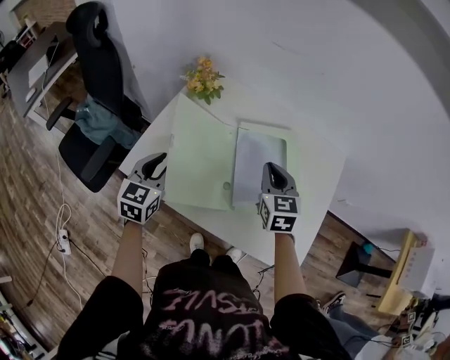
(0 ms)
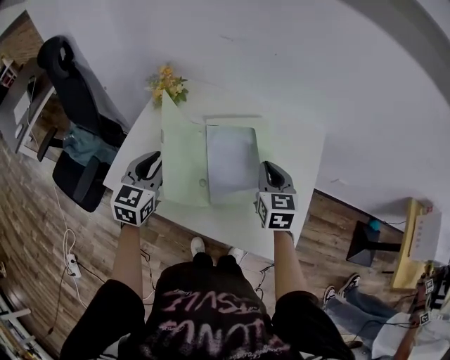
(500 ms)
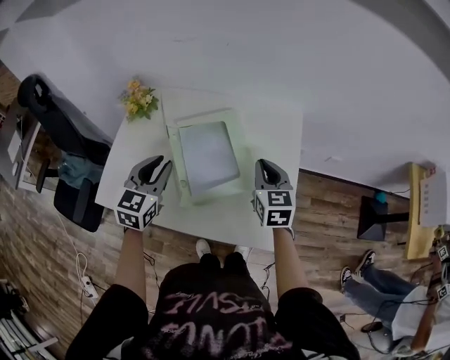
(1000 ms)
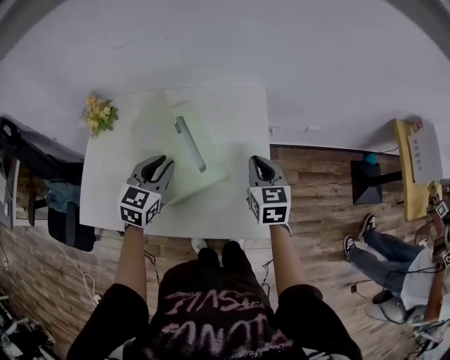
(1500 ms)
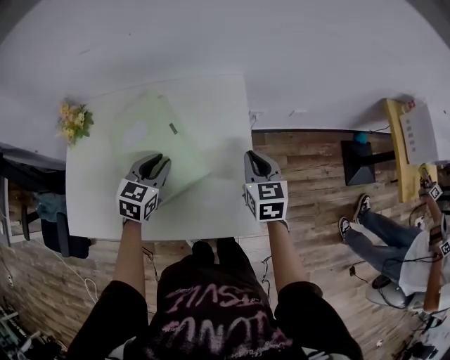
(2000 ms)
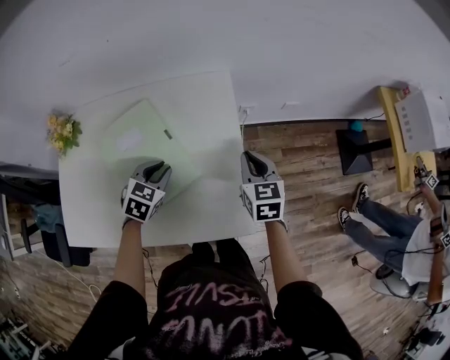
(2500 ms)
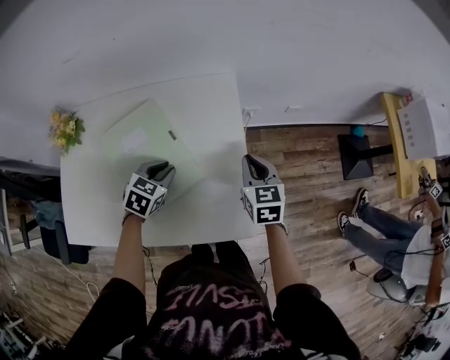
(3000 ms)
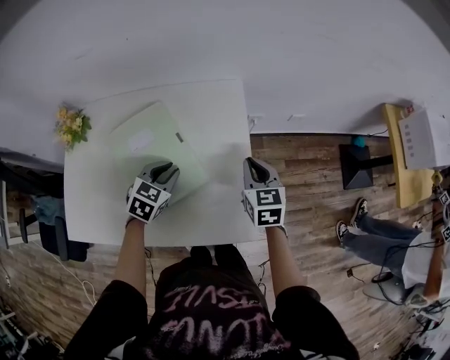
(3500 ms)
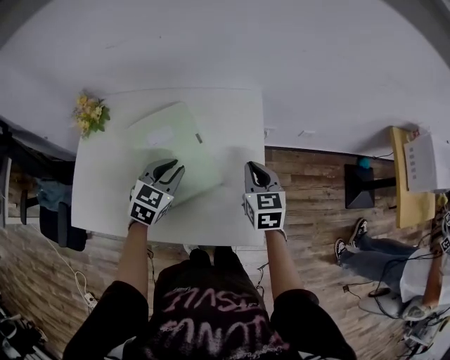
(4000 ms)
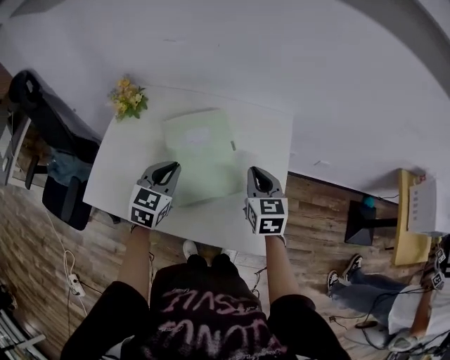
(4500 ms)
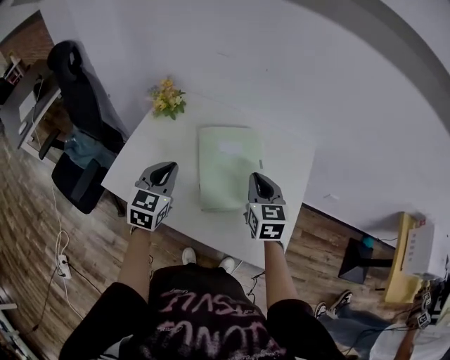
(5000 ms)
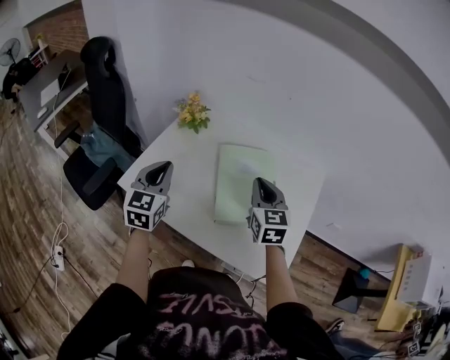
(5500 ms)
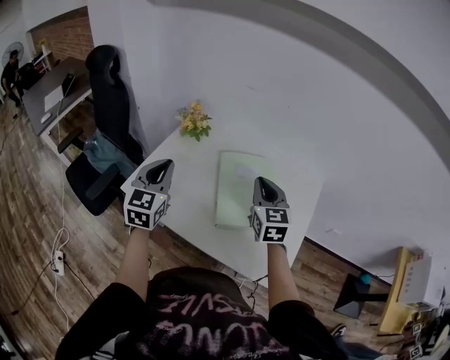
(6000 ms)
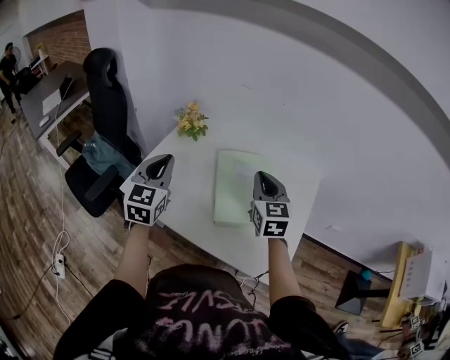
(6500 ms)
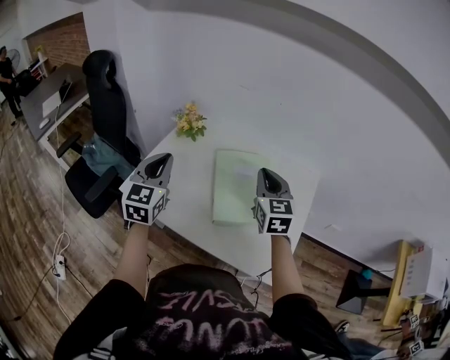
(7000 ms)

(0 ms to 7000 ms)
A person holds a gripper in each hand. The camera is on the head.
0 ms - 2000 ms: The left gripper shifts by approximately 40 cm, and turns by approximately 30 degrees. Meanwhile the right gripper shifts by approximately 35 cm, and swivels about 30 degrees.
3500 ms - 5000 ms: The right gripper shifts by some 25 cm, and changes its angle by roughly 20 degrees; the left gripper changes place by some 30 cm, and swivels some 40 degrees.
5000 ms - 7000 ms: The right gripper moves upward, approximately 10 cm; the left gripper heads upward and to the left, covering roughly 15 cm.

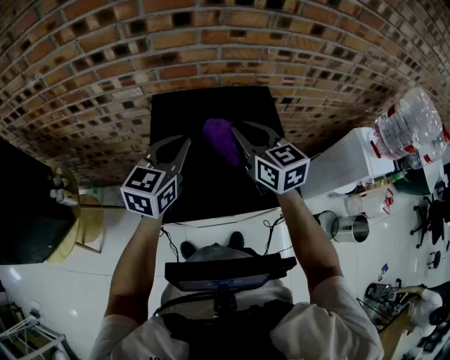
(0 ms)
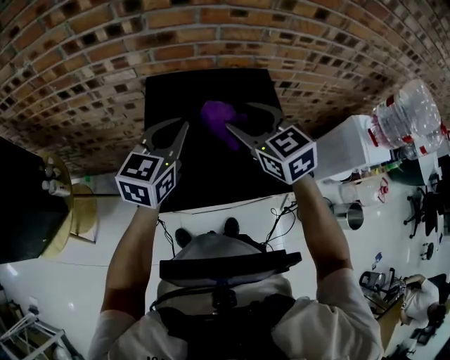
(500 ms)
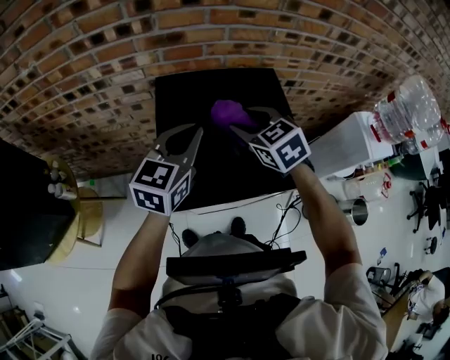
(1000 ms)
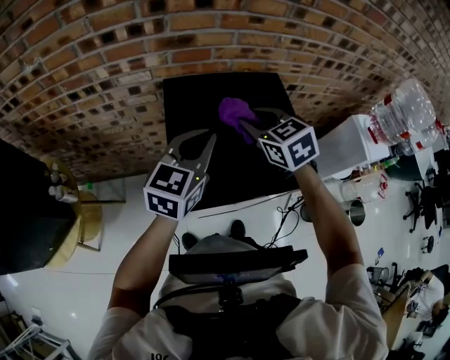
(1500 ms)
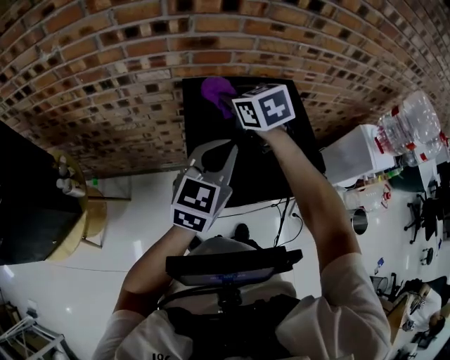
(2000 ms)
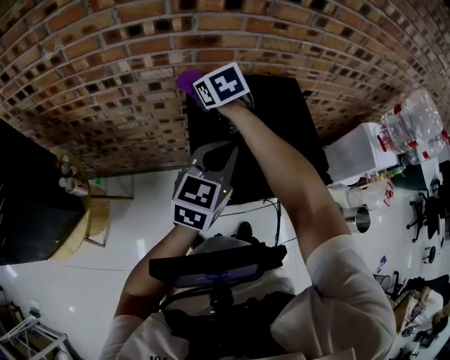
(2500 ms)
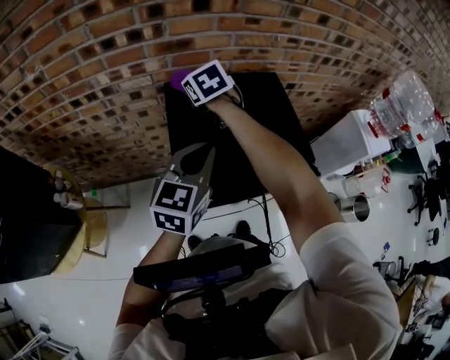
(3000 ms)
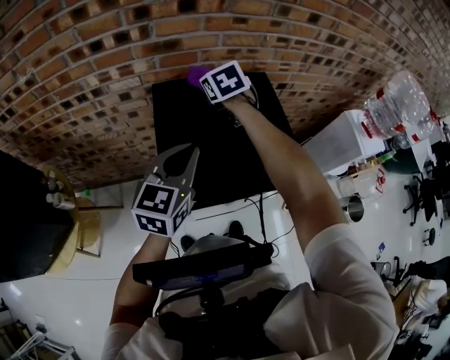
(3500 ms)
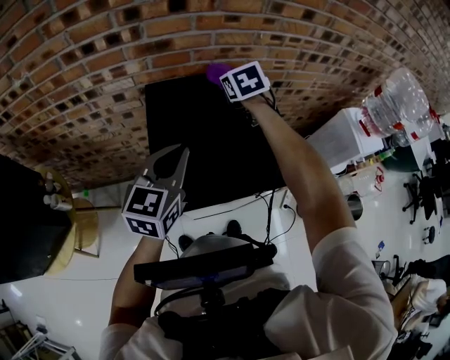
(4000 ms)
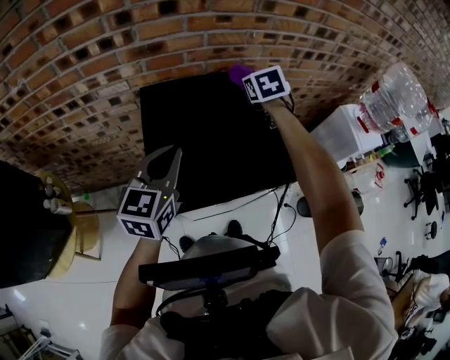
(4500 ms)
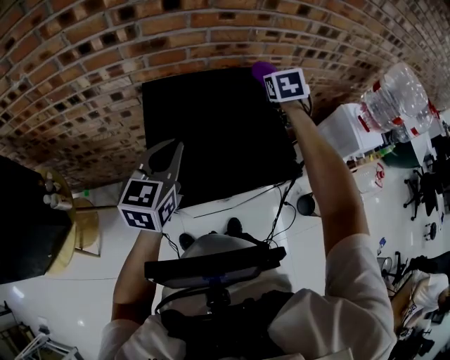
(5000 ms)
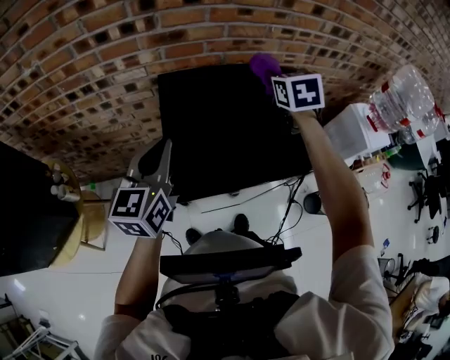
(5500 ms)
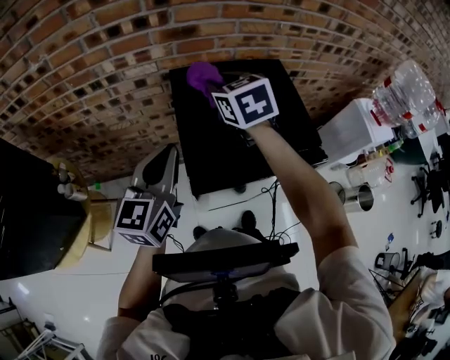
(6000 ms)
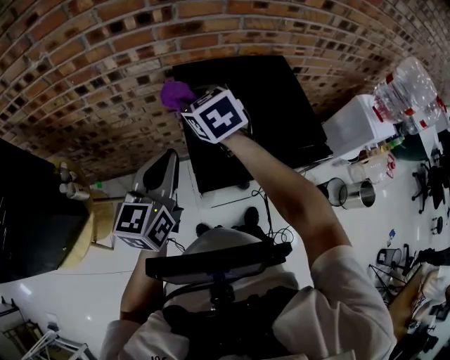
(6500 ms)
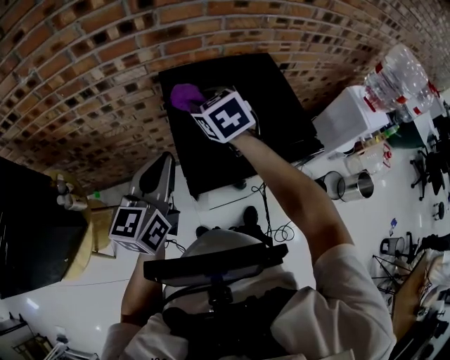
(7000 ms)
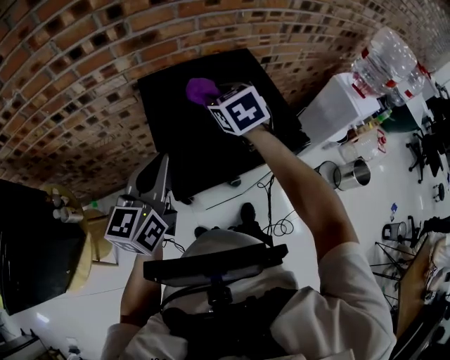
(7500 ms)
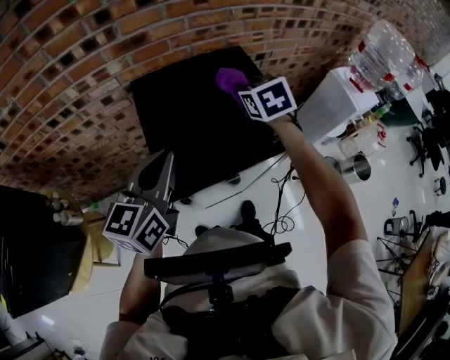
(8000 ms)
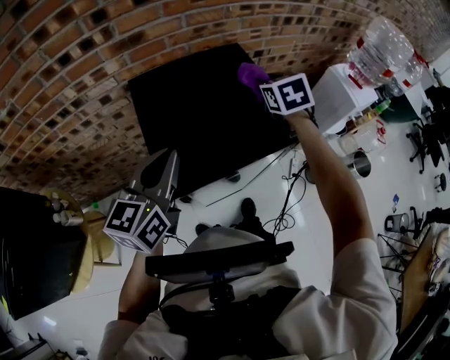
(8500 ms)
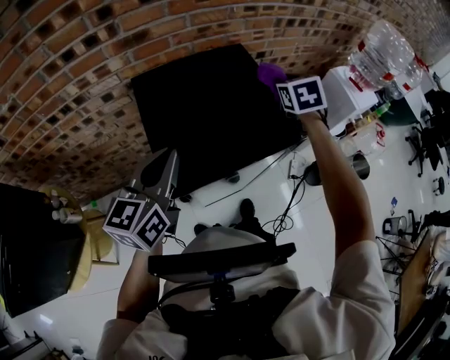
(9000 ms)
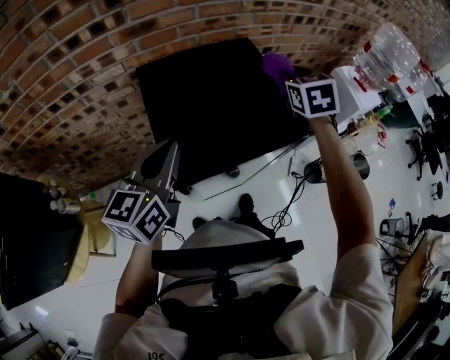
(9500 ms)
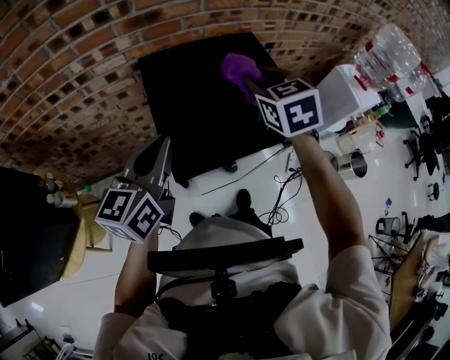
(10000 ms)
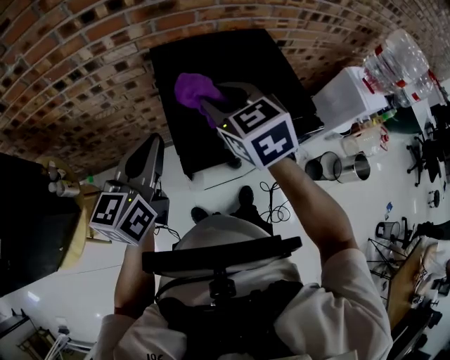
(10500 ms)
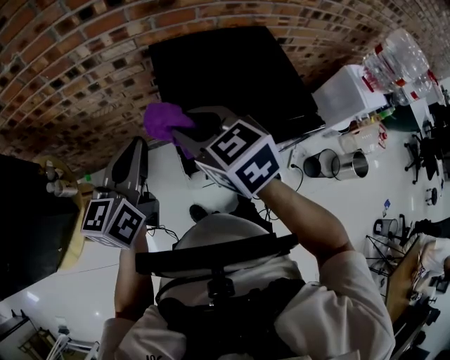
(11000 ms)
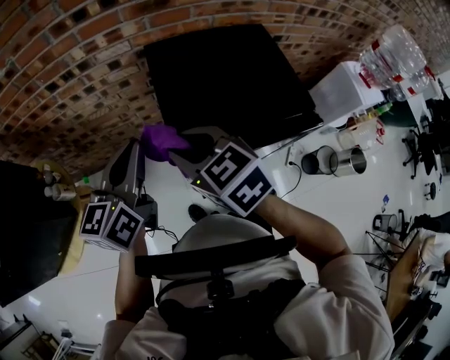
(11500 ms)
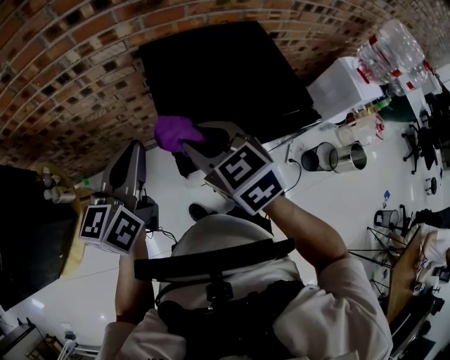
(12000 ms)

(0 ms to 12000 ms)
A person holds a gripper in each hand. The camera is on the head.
0 ms - 2000 ms: The right gripper shifts roughly 15 cm to the left and forward, rotates roughly 20 degrees, and opens, then closes once more.
2000 ms - 4000 ms: The right gripper travels to the right and forward by some 15 cm.
4000 ms - 6000 ms: The right gripper is displaced backward and to the left by some 15 cm. Meanwhile the left gripper goes roughly 10 cm to the left and backward.
6000 ms - 8000 ms: The right gripper is displaced to the right by about 20 cm. The left gripper travels to the right by roughly 5 cm.
8000 ms - 10000 ms: The right gripper moves backward and upward, approximately 10 cm, and travels to the right and back again, about 10 cm each way.
10000 ms - 12000 ms: The left gripper travels to the left by some 10 cm; the right gripper shifts about 20 cm to the left and backward, and rotates about 20 degrees.

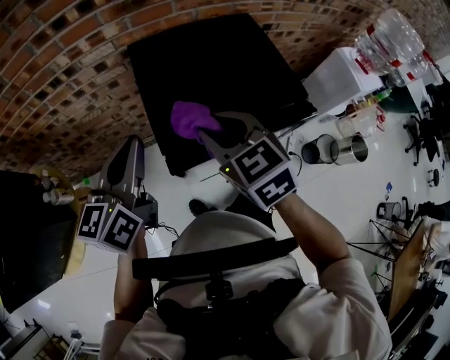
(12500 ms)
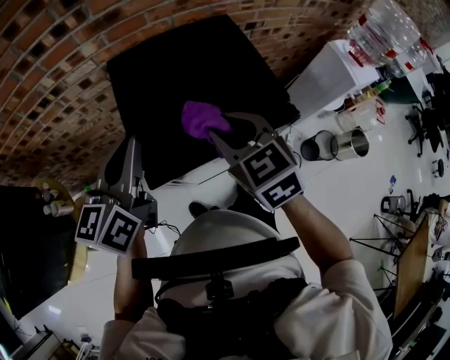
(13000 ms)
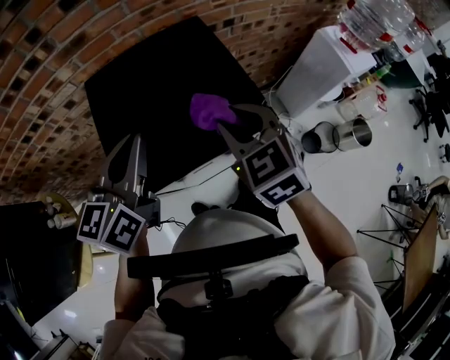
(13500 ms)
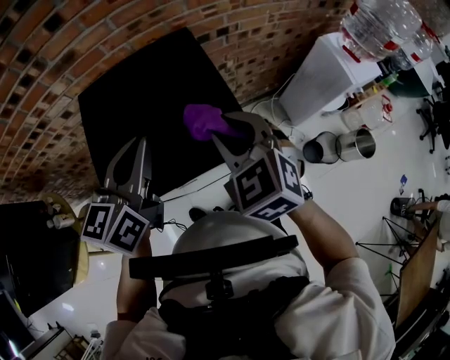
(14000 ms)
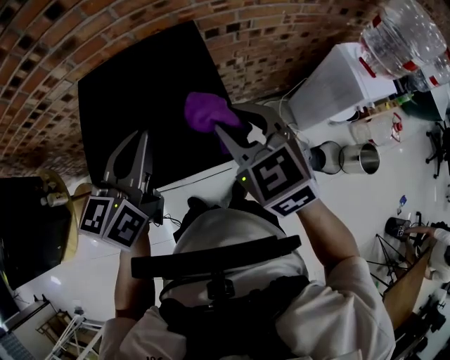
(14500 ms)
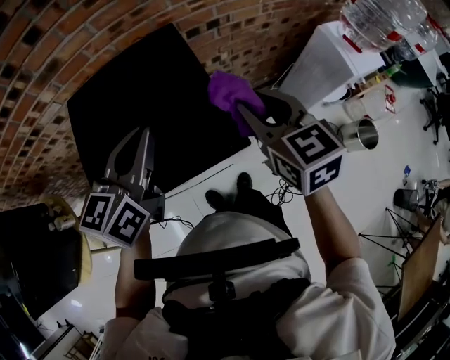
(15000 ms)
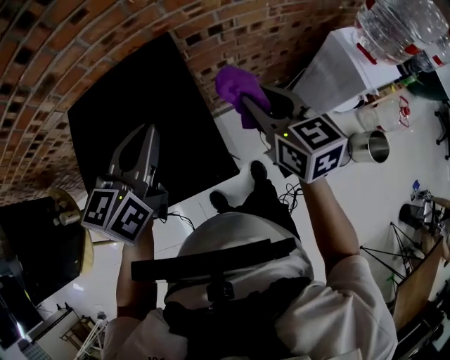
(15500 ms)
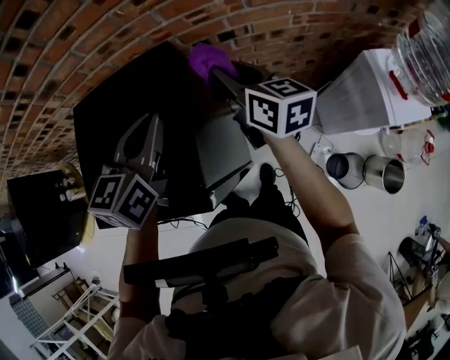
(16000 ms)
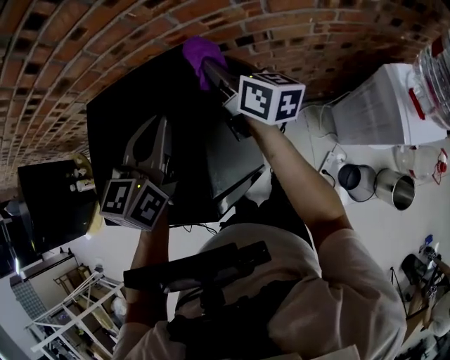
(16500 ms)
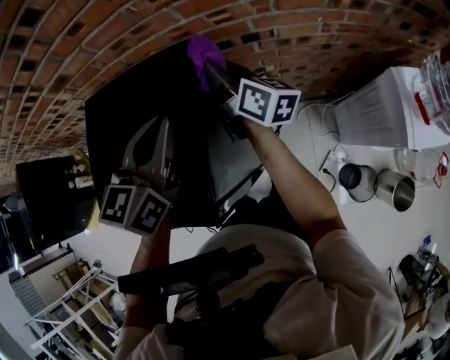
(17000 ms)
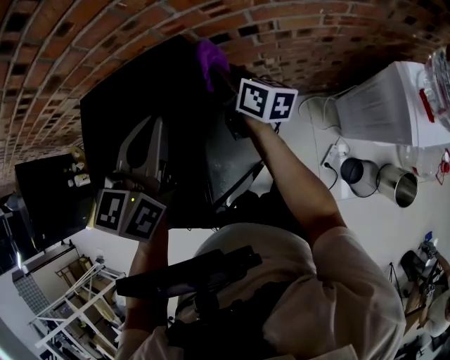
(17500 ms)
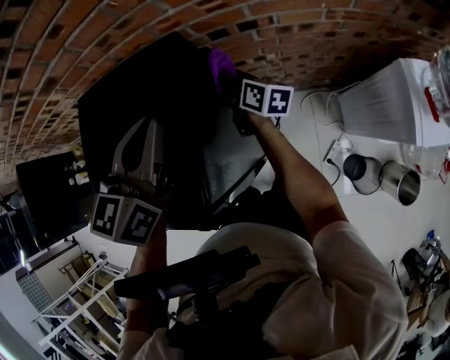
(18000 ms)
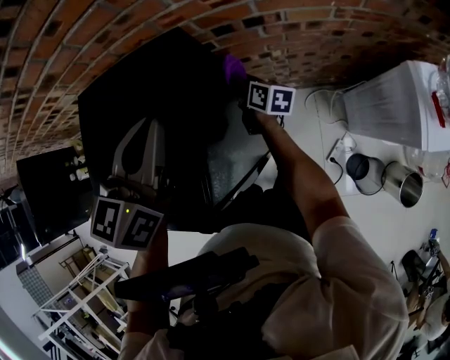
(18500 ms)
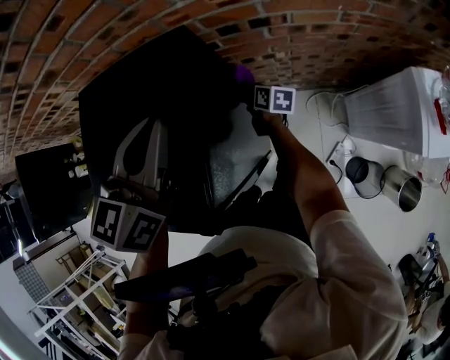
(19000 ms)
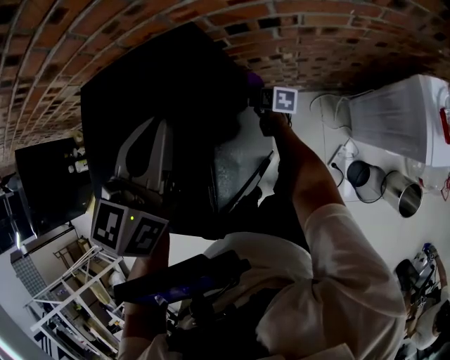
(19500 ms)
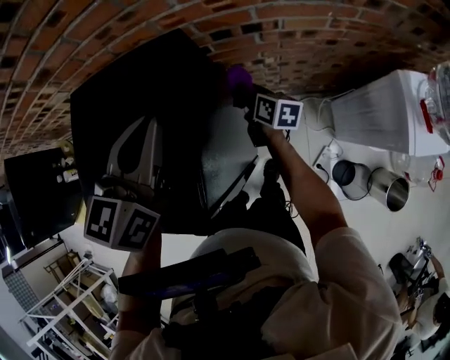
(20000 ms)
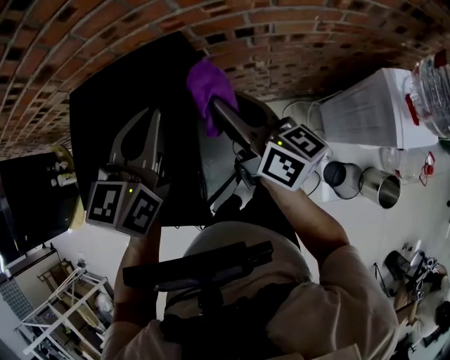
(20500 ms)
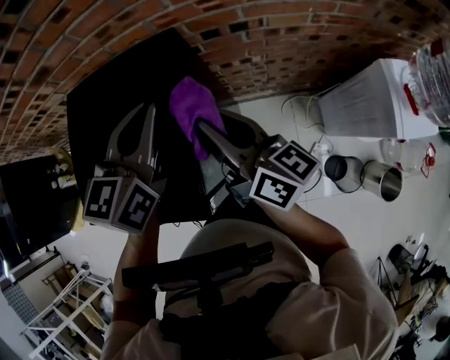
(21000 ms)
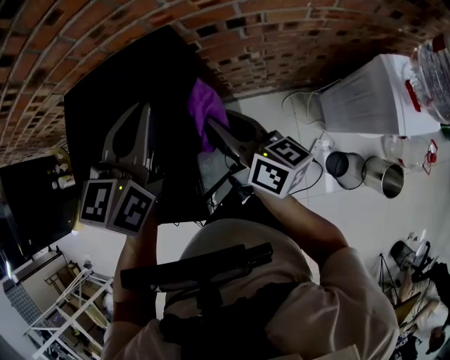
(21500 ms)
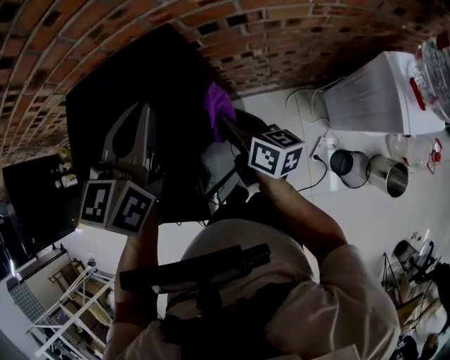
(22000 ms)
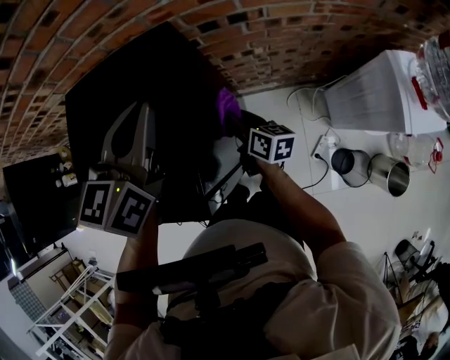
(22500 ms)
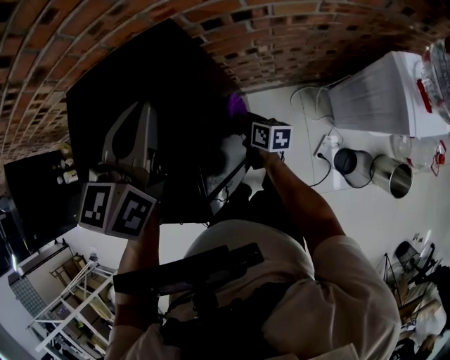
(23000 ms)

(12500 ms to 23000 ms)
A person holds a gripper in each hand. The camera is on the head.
12500 ms - 14500 ms: The grippers both shift to the right by roughly 25 cm.
14500 ms - 16500 ms: The right gripper shifts about 25 cm forward, and rolls clockwise, seen from behind, by about 50 degrees. Meanwhile the left gripper shifts about 15 cm forward and to the right.
16500 ms - 19000 ms: The right gripper shifts approximately 35 cm downward, and angles its fingers downward, by roughly 30 degrees.
19000 ms - 21000 ms: The right gripper is displaced upward and backward by about 40 cm, and points its fingers approximately 40 degrees further upward.
21000 ms - 23000 ms: The right gripper is displaced downward by approximately 35 cm, and angles its fingers downward, by approximately 30 degrees.
